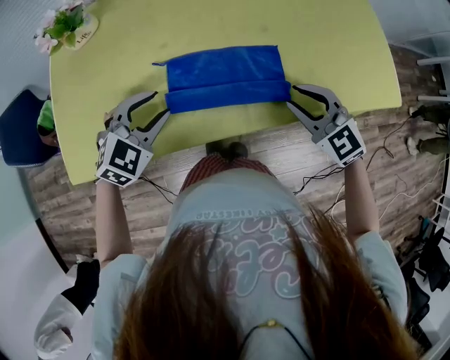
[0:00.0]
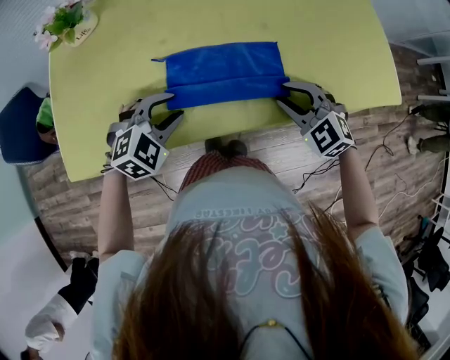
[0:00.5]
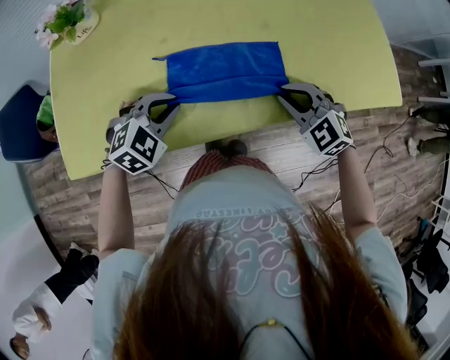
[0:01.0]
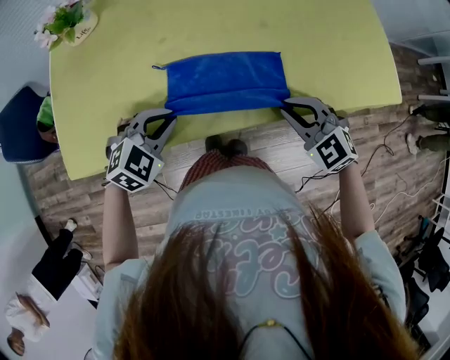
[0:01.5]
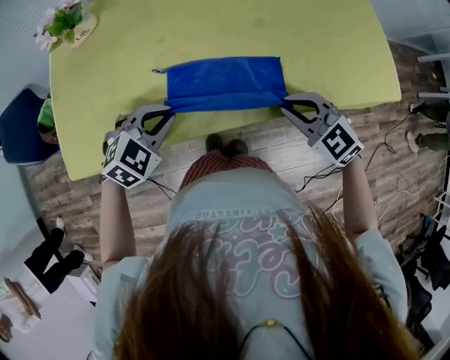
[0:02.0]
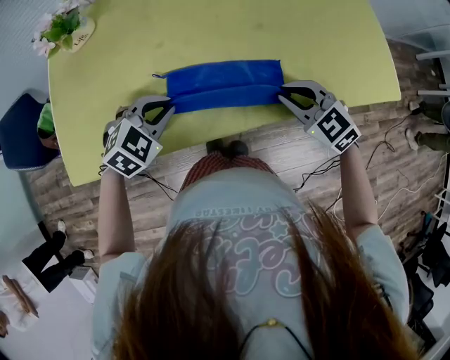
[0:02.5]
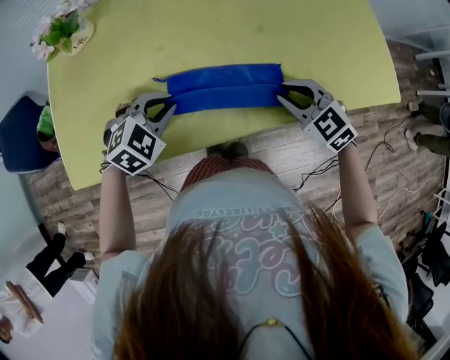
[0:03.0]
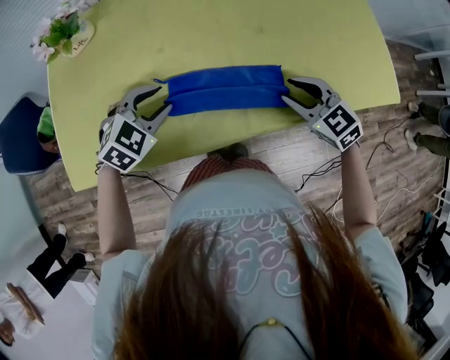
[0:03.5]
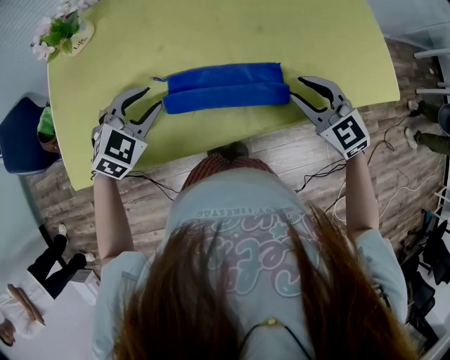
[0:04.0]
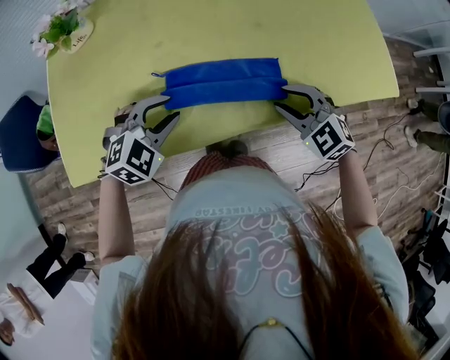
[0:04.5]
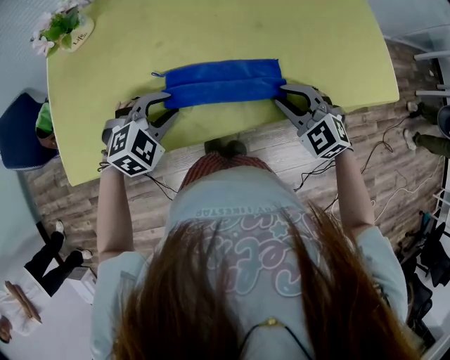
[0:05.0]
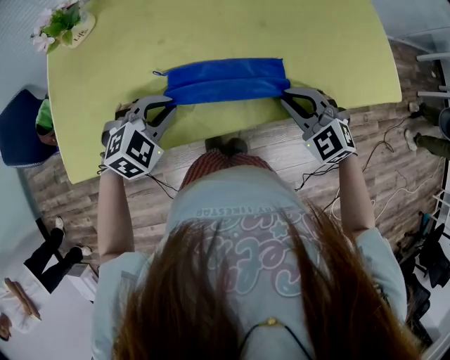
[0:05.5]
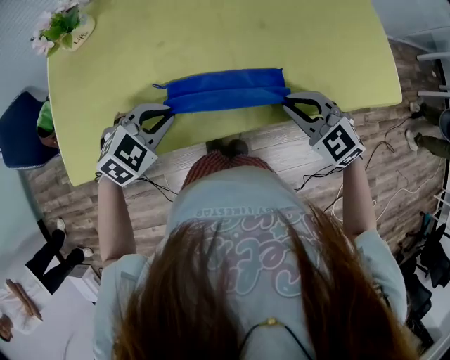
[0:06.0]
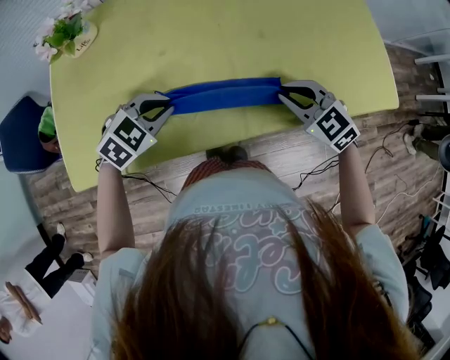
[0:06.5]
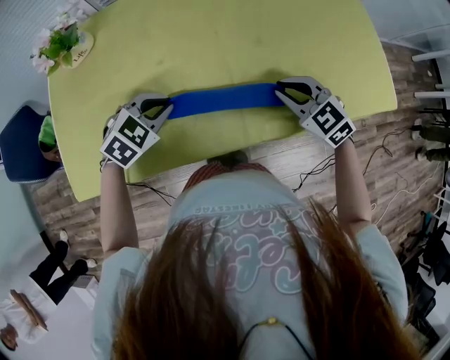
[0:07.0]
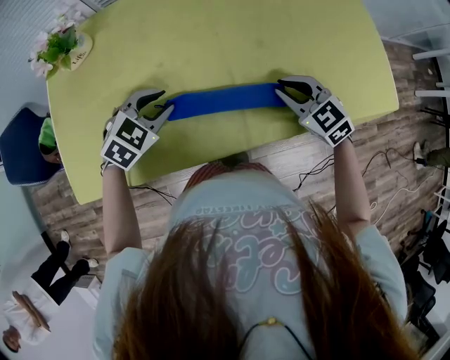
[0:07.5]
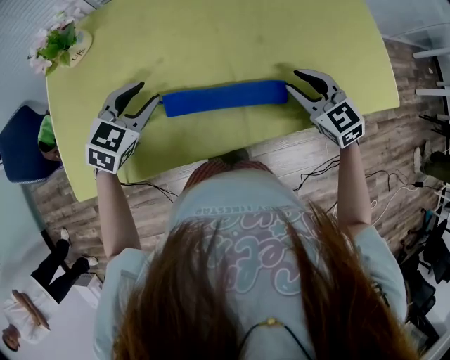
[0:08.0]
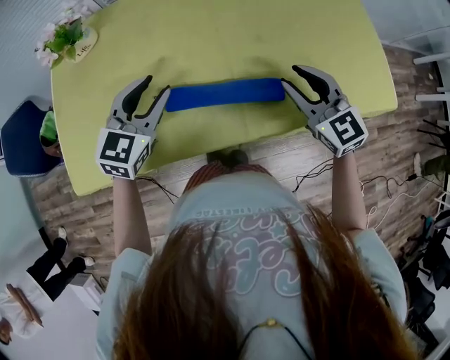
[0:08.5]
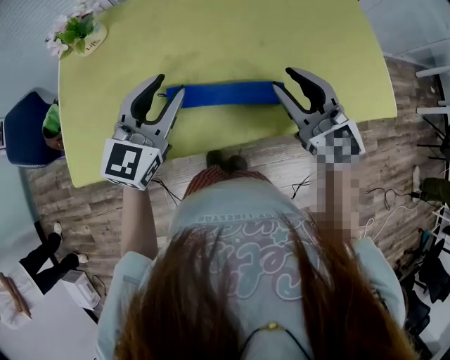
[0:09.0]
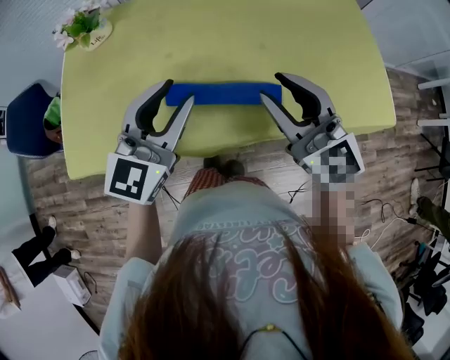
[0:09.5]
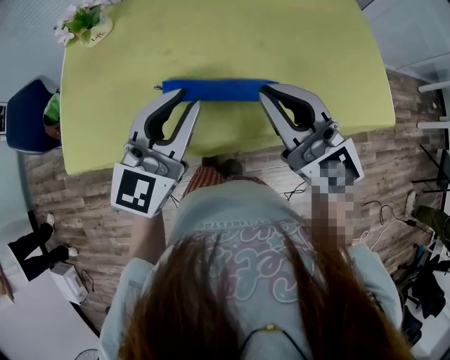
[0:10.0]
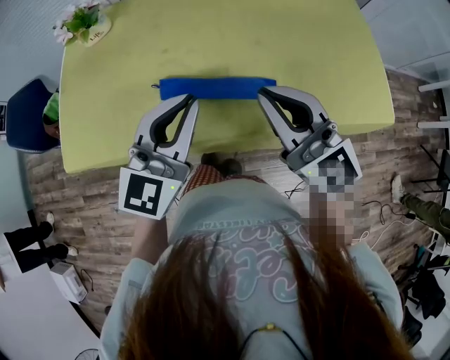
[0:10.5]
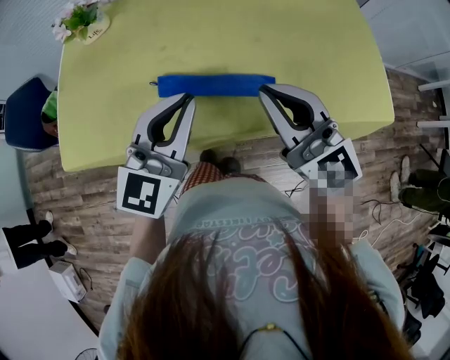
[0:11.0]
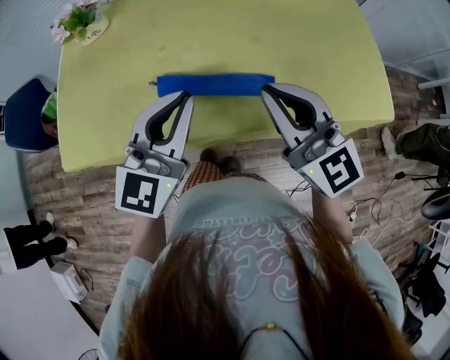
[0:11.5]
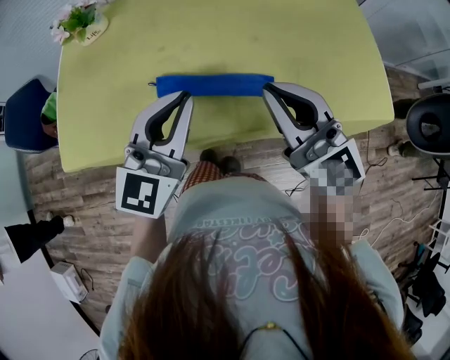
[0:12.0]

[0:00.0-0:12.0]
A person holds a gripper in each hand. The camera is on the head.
0:00.0 to 0:02.0: The left gripper ends up some 5 cm from where it was, and closes its fingers.
0:02.0 to 0:04.0: The grippers both shift forward by some 5 cm. The left gripper opens. Meanwhile the right gripper opens up.
0:04.0 to 0:06.0: The left gripper moves backward, some 5 cm, and closes up. The right gripper changes place by roughly 5 cm, and closes its fingers.
0:06.0 to 0:08.0: Both grippers move forward, about 10 cm. The left gripper turns by some 20 degrees, and opens its fingers; the right gripper opens its fingers.
0:08.0 to 0:10.0: The left gripper moves upward, to the right and backward, approximately 20 cm, and tilts its fingers about 40 degrees upward; the right gripper goes about 20 cm upward, to the left and backward, tips its fingers upward by about 30 degrees, and closes.
0:10.0 to 0:12.0: There are only small adjustments of the grippers.

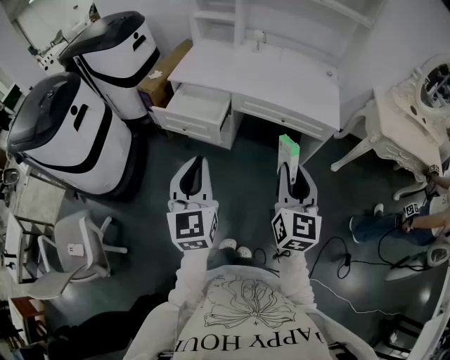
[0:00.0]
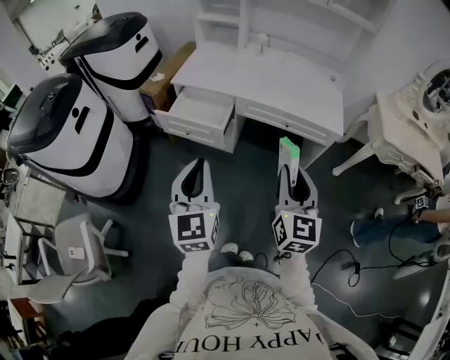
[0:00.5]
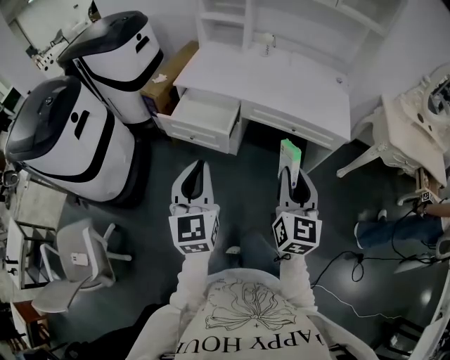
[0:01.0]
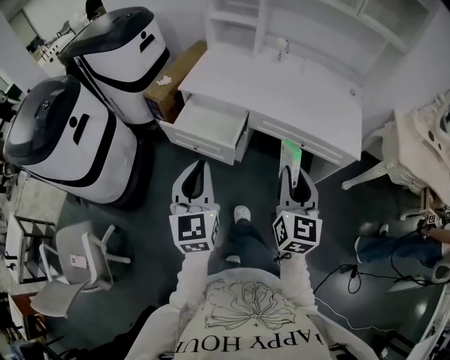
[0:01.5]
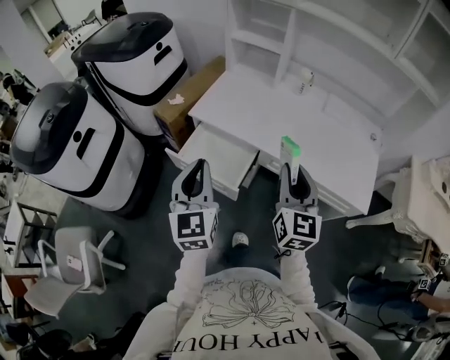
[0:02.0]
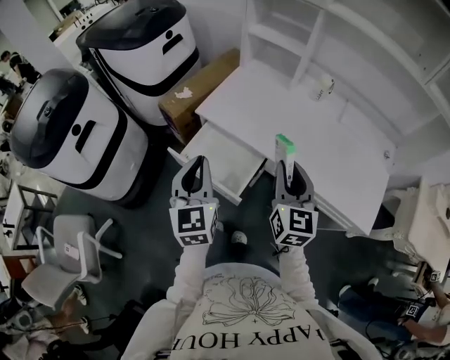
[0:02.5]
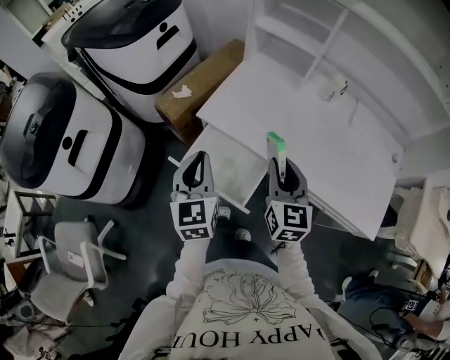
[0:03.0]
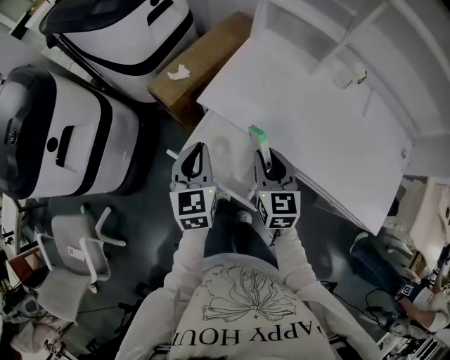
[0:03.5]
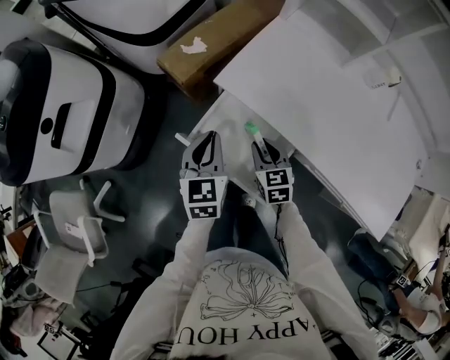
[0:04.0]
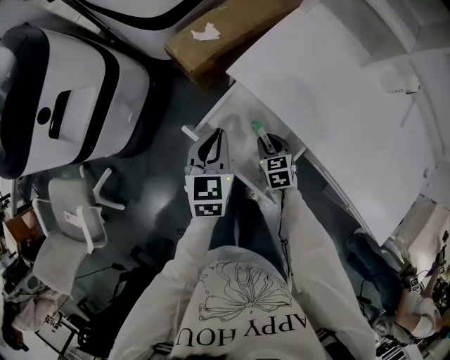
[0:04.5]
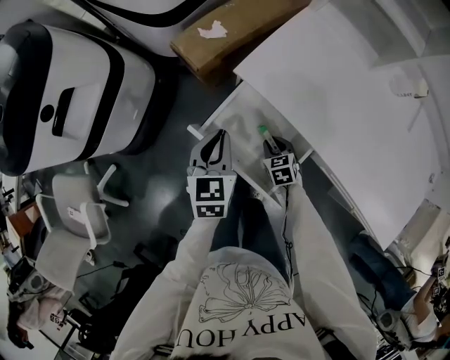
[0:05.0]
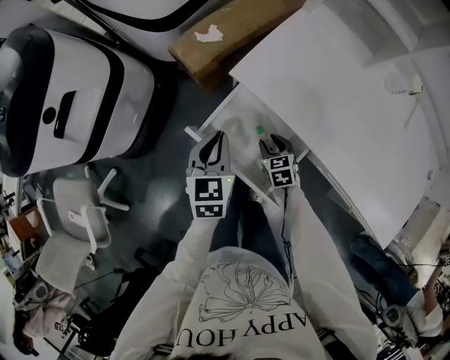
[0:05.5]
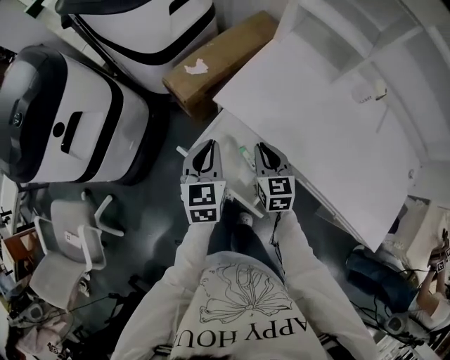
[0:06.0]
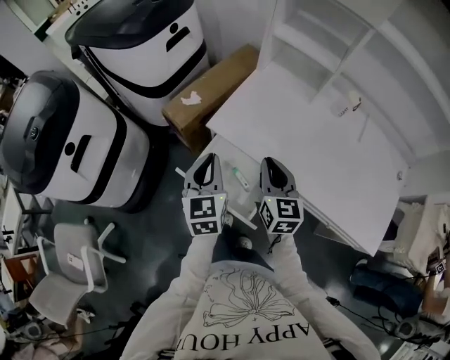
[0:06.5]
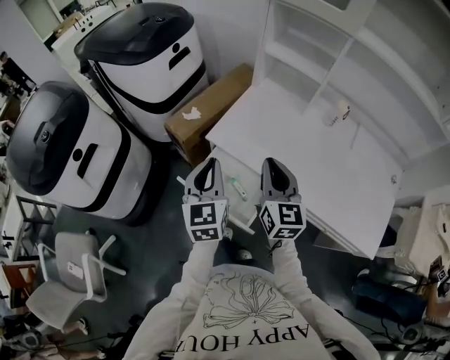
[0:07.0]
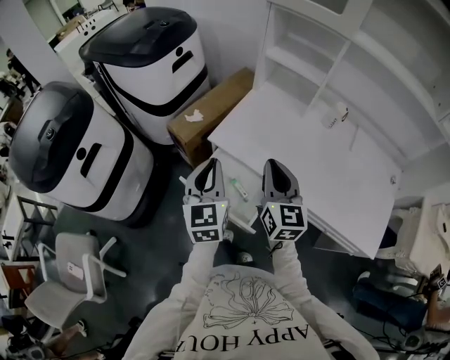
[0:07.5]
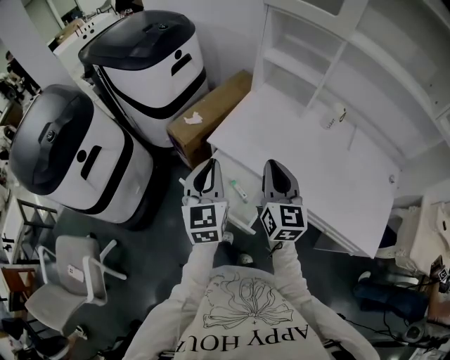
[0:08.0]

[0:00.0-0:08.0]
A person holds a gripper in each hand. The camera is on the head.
0:00.0 to 0:02.0: The two grippers go approximately 35 cm forward.
0:02.0 to 0:04.0: The two grippers go some 40 cm downward, forward and to the left. The right gripper points its fingers approximately 30 degrees further downward. The left gripper rotates approximately 20 degrees.
0:04.0 to 0:06.0: The right gripper travels downward and back again, about 15 cm each way.
0:06.0 to 0:08.0: The grippers both shift upward by about 20 cm. The right gripper turns by some 30 degrees.

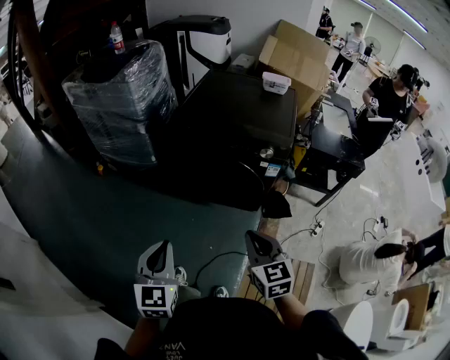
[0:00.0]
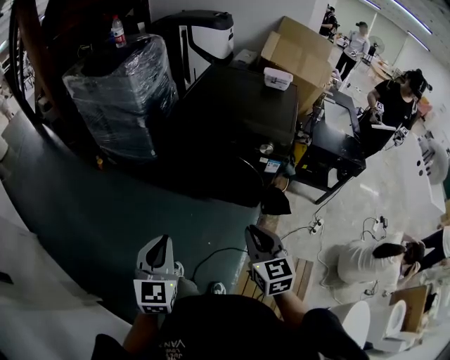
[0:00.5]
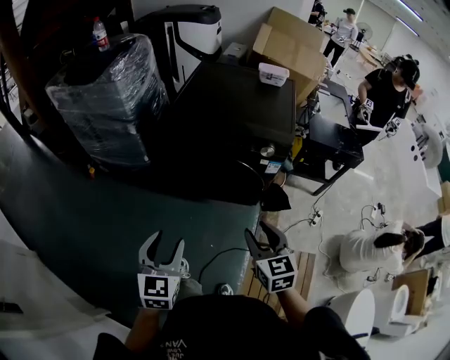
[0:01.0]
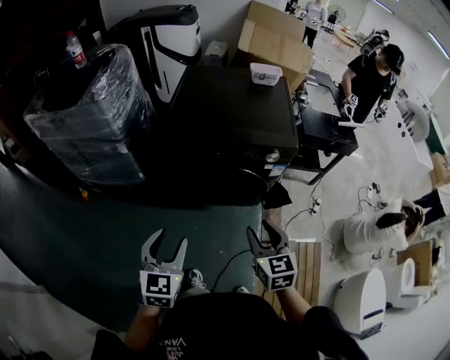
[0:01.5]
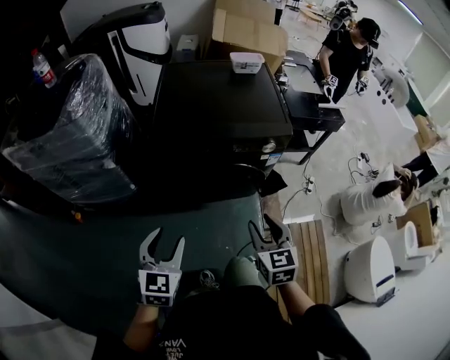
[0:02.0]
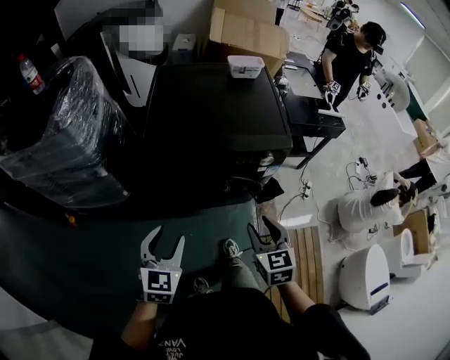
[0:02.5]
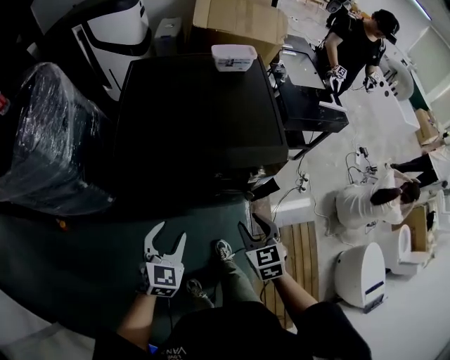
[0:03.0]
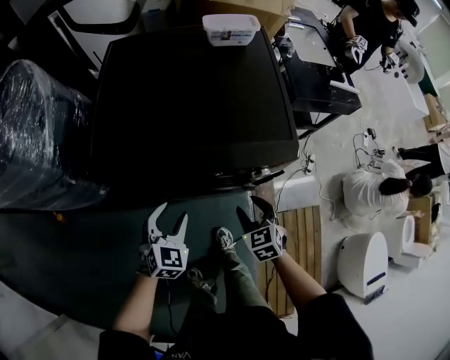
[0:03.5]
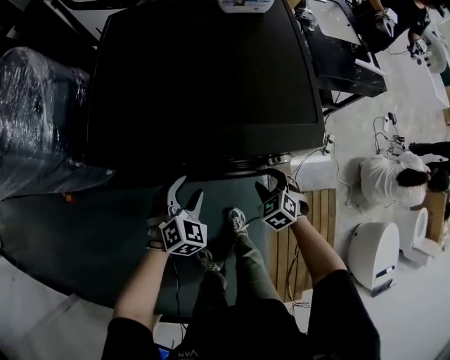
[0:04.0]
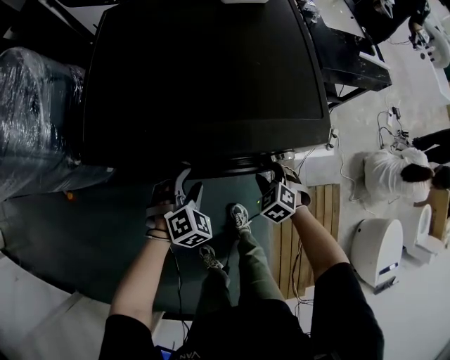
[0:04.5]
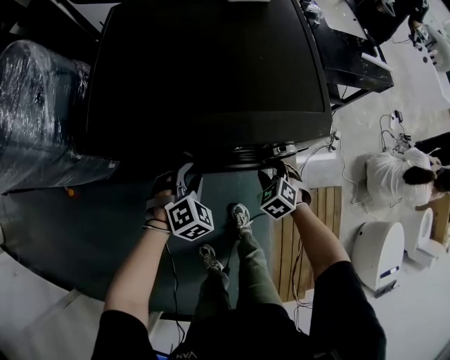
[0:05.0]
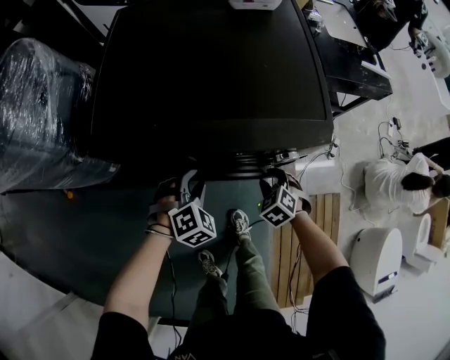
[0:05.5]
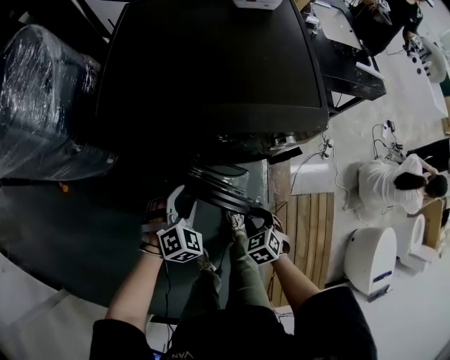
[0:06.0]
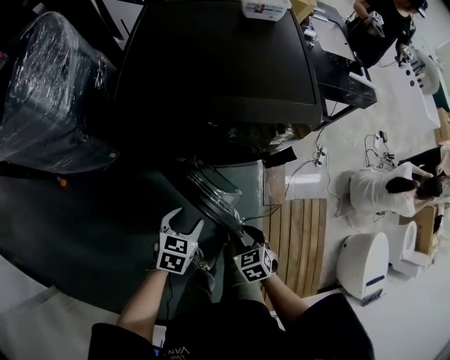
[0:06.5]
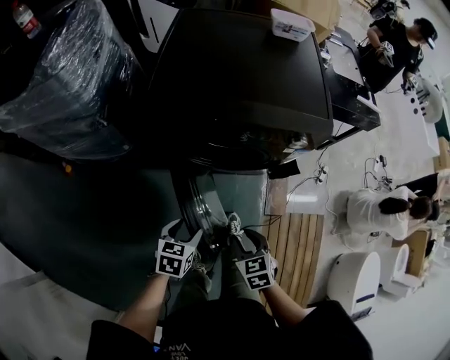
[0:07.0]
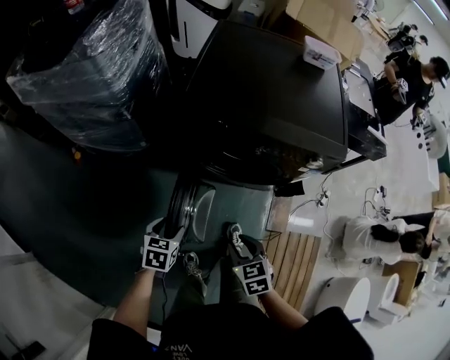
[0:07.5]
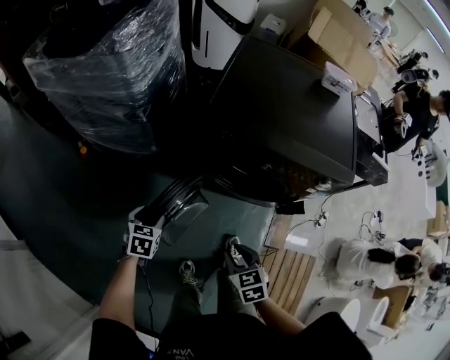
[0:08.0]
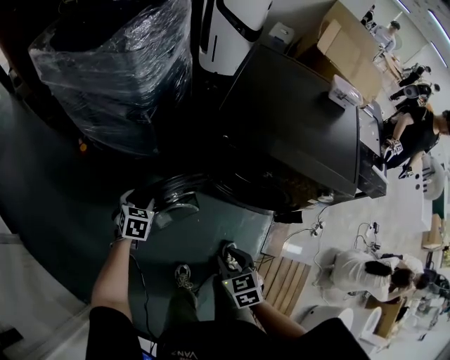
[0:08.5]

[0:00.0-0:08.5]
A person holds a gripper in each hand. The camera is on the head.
0:00.0 to 0:02.0: The right gripper ends up approximately 20 cm from where it was, turns by approximately 30 degrees, and opens up, while the left gripper shifts by approximately 25 cm, swivels about 30 degrees, and opens up.
0:02.0 to 0:04.0: The left gripper heads forward, downward and to the right, covering some 40 cm, and swivels about 40 degrees; the right gripper shifts roughly 40 cm forward and downward, and tips its fingers downward by about 30 degrees.
0:04.0 to 0:06.5: The right gripper travels backward and to the left by some 25 cm, and swivels about 20 degrees. The left gripper moves backward, some 20 cm, and rotates about 40 degrees.
0:06.5 to 0:08.5: The right gripper changes place by approximately 20 cm. Meanwhile the left gripper ends up approximately 35 cm from where it was, and turns by about 30 degrees.
